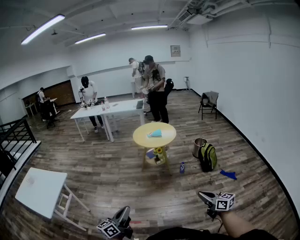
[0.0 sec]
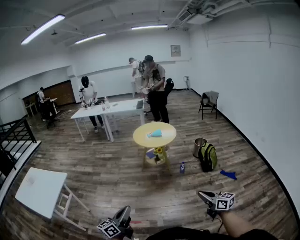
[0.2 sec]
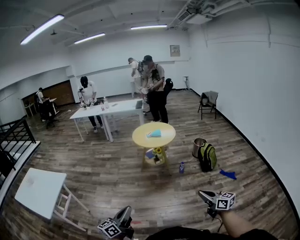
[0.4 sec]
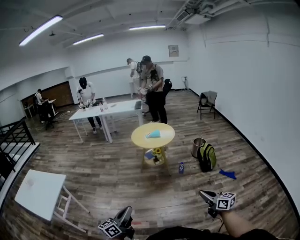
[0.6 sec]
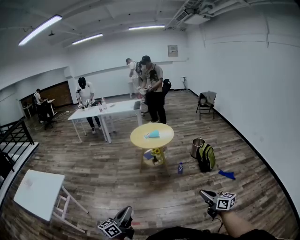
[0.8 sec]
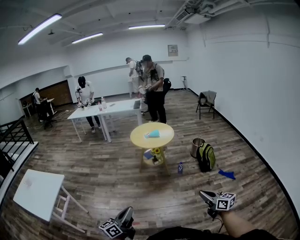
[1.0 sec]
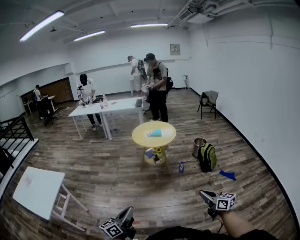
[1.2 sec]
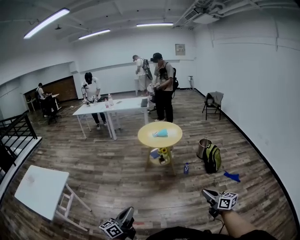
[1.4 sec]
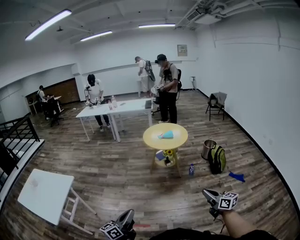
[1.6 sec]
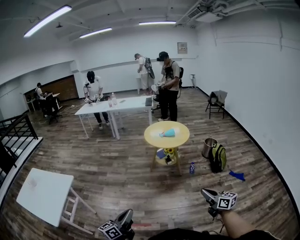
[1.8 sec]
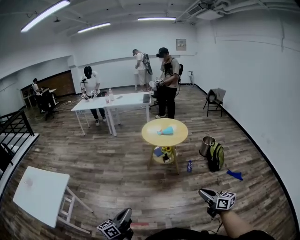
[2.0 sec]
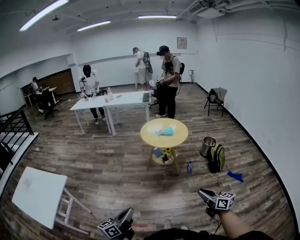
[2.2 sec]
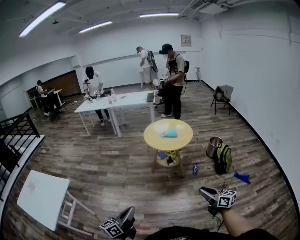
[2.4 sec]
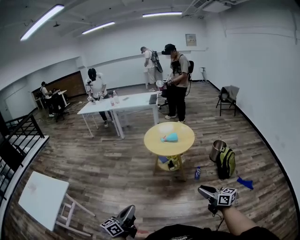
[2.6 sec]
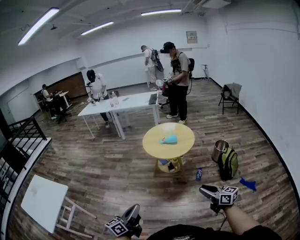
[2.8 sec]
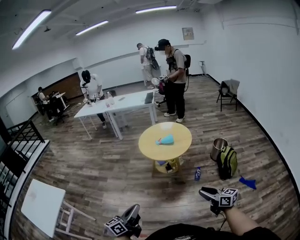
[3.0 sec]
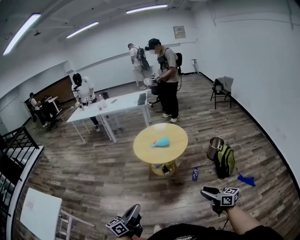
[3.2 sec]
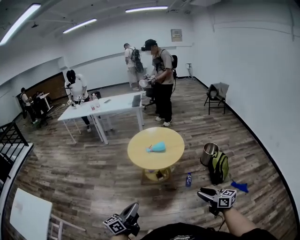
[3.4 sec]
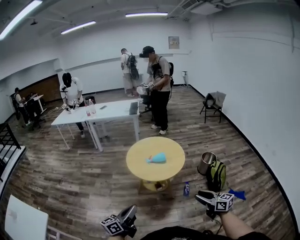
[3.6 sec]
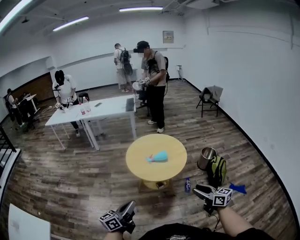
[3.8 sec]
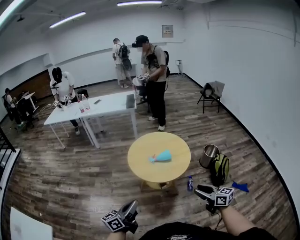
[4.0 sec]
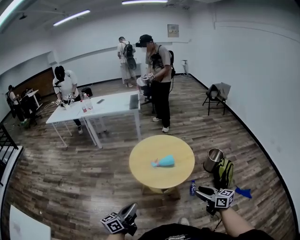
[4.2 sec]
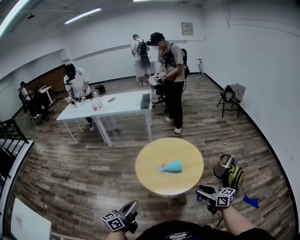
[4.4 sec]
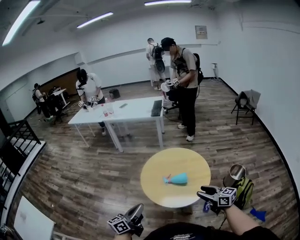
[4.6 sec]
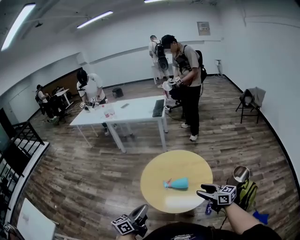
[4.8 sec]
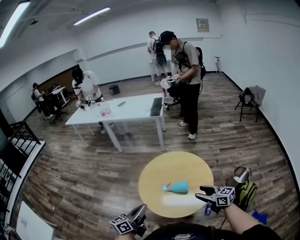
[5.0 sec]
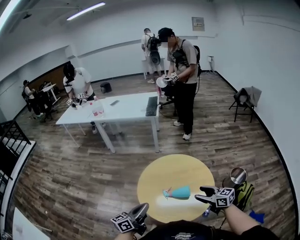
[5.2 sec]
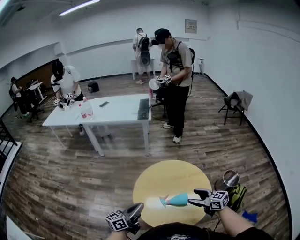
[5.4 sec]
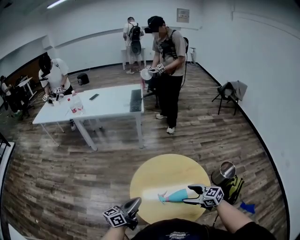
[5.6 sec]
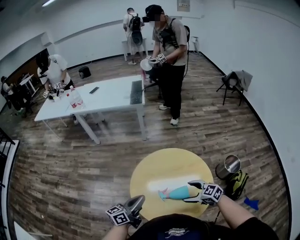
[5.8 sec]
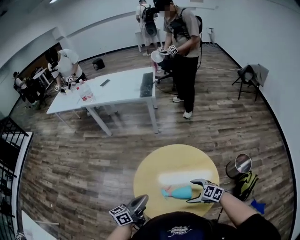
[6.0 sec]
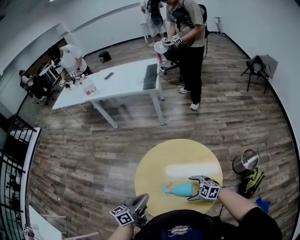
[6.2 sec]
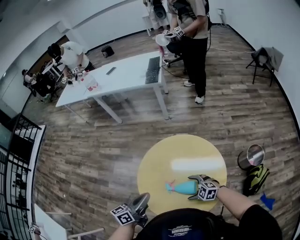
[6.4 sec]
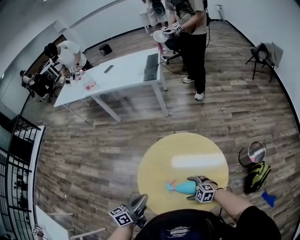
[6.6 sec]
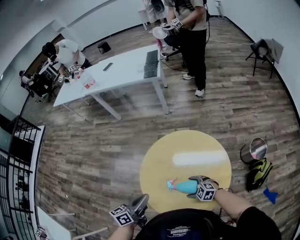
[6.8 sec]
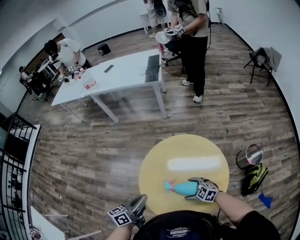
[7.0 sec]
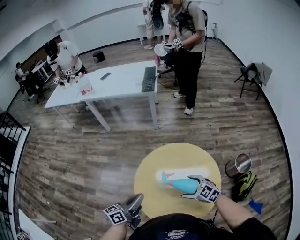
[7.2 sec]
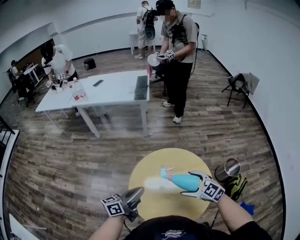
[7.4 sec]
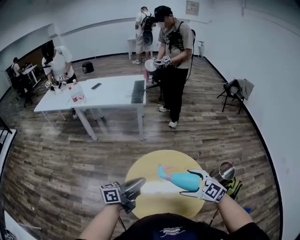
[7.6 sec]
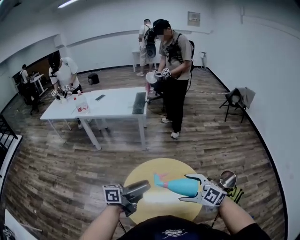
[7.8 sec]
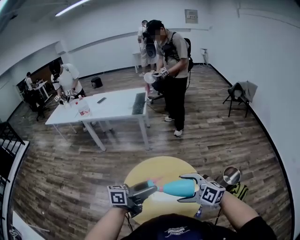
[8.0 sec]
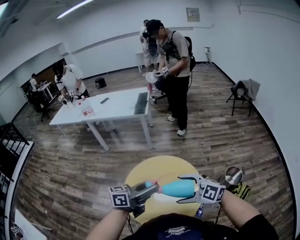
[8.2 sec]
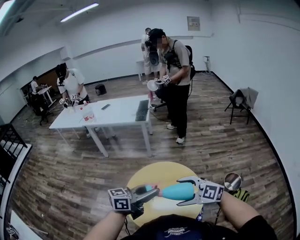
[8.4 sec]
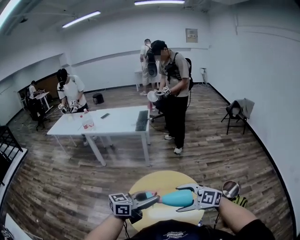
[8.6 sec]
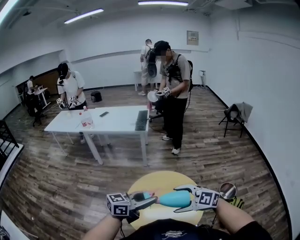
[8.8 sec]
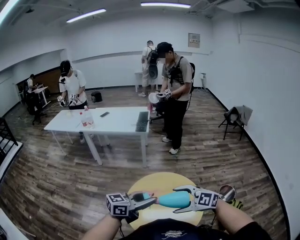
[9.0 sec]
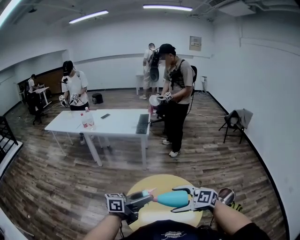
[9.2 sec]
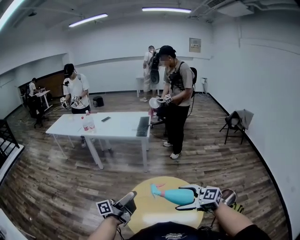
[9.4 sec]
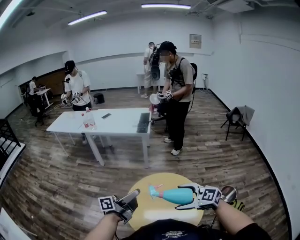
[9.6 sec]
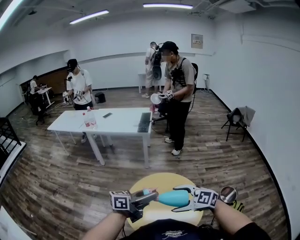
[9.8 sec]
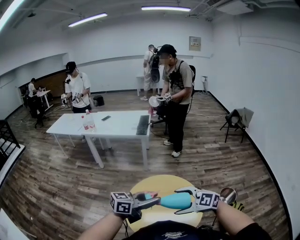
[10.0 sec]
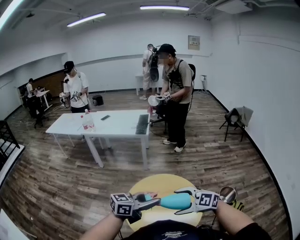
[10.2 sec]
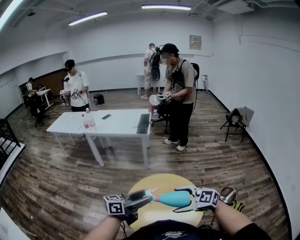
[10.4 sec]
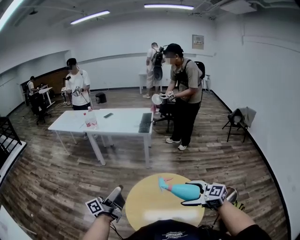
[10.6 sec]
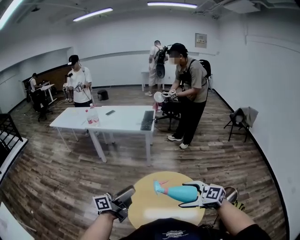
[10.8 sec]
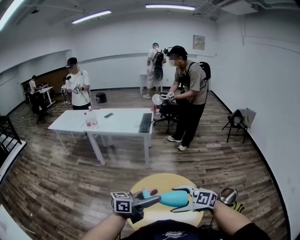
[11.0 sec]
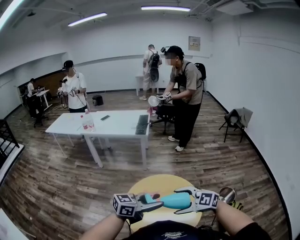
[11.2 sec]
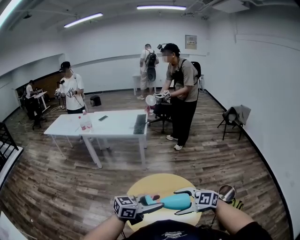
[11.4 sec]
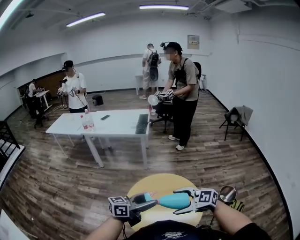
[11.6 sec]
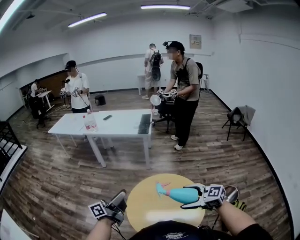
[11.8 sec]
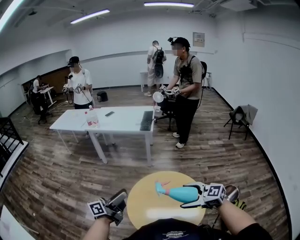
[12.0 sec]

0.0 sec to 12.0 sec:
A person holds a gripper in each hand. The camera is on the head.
0.0 sec to 1.6 sec: The two grippers go roughly 15 cm to the left and forward.
1.6 sec to 3.0 sec: Both grippers are carried forward and to the right, approximately 50 cm.
3.0 sec to 4.4 sec: The two grippers travel together, forward, approximately 60 cm.
4.4 sec to 6.0 sec: Both grippers are carried forward, roughly 50 cm. The right gripper goes approximately 20 cm downward, rotates about 50 degrees, and opens.
6.0 sec to 7.6 sec: The left gripper goes some 10 cm upward, and swivels some 20 degrees. Meanwhile the right gripper is displaced upward by about 20 cm, and swivels approximately 20 degrees.
7.6 sec to 9.0 sec: The left gripper changes place by roughly 20 cm, changes its angle by roughly 30 degrees, and opens up. The right gripper ends up about 15 cm from where it was, and rotates approximately 20 degrees.
10.4 sec to 12.0 sec: The left gripper ends up roughly 10 cm from where it was, and changes its angle by roughly 20 degrees.

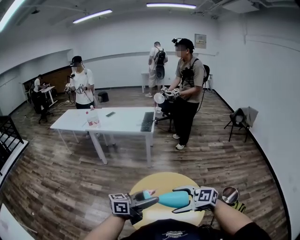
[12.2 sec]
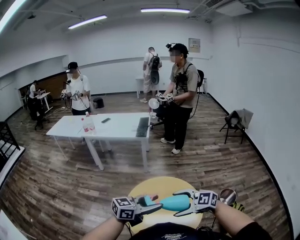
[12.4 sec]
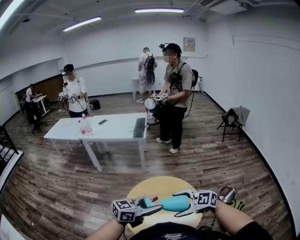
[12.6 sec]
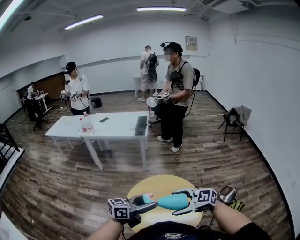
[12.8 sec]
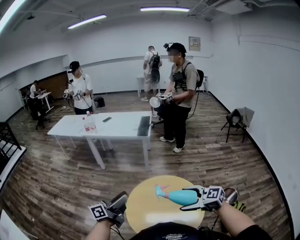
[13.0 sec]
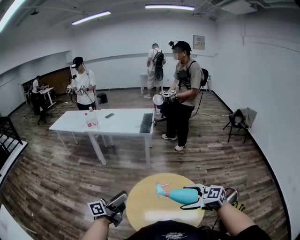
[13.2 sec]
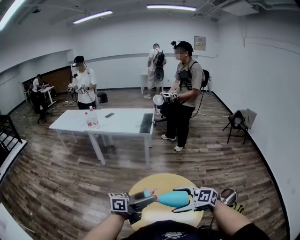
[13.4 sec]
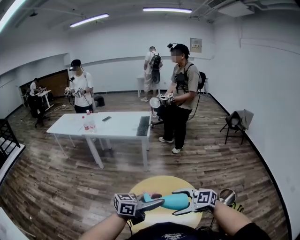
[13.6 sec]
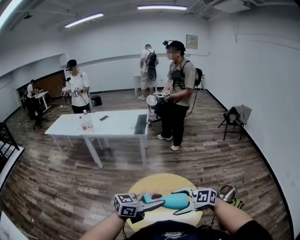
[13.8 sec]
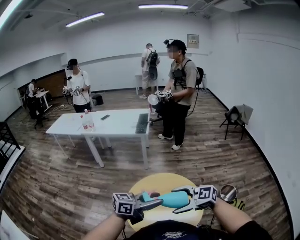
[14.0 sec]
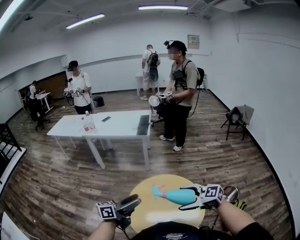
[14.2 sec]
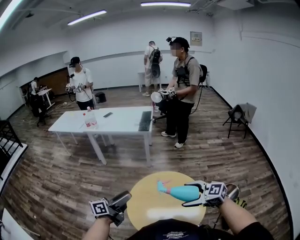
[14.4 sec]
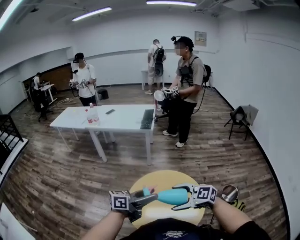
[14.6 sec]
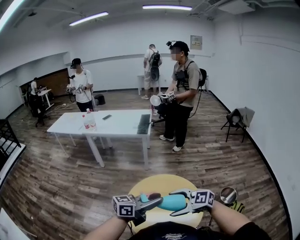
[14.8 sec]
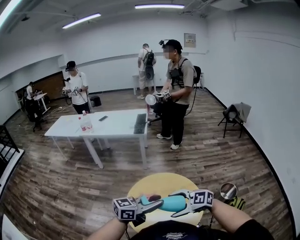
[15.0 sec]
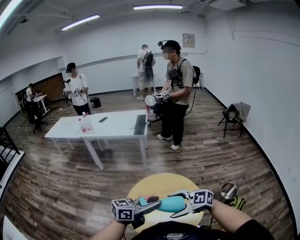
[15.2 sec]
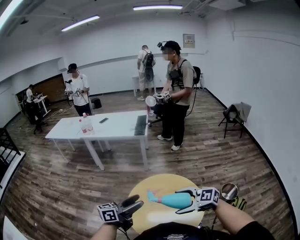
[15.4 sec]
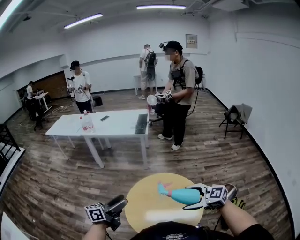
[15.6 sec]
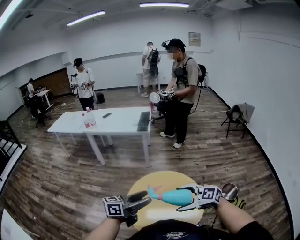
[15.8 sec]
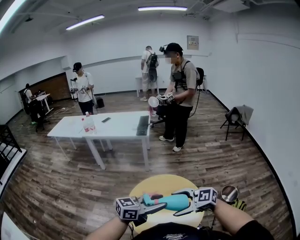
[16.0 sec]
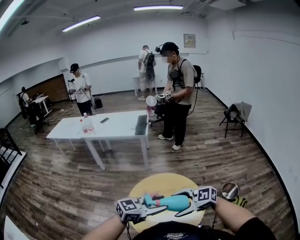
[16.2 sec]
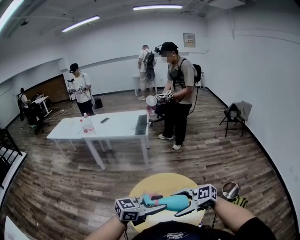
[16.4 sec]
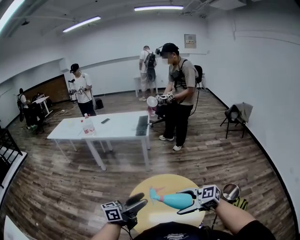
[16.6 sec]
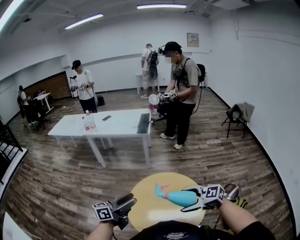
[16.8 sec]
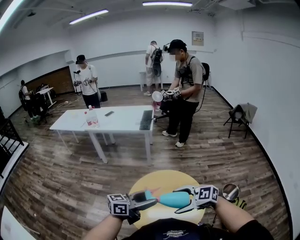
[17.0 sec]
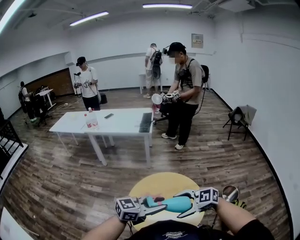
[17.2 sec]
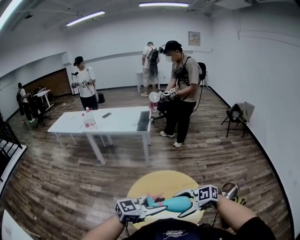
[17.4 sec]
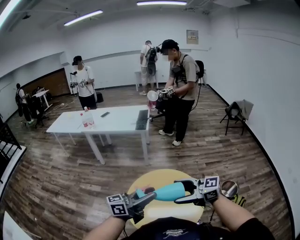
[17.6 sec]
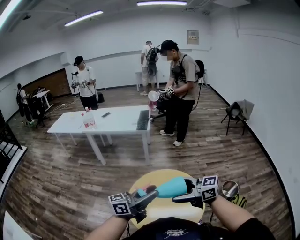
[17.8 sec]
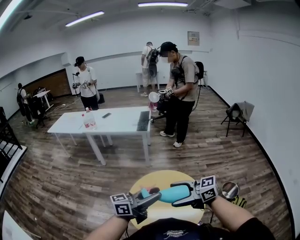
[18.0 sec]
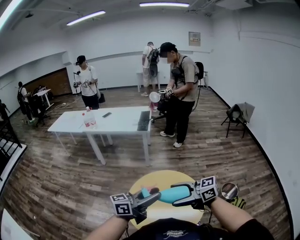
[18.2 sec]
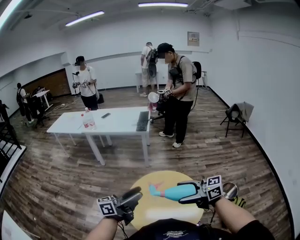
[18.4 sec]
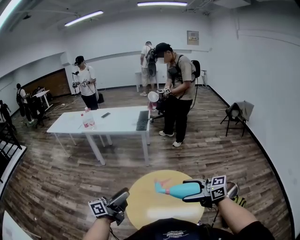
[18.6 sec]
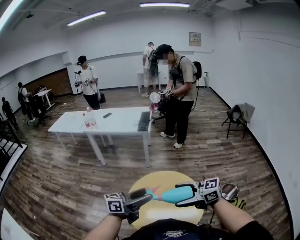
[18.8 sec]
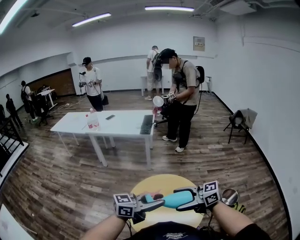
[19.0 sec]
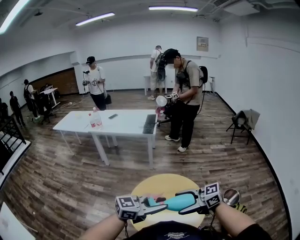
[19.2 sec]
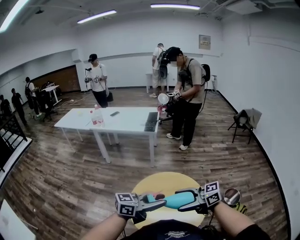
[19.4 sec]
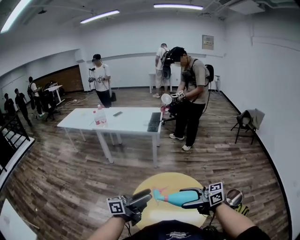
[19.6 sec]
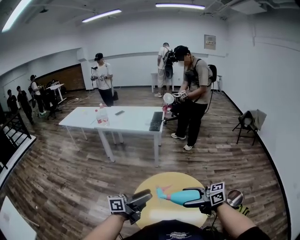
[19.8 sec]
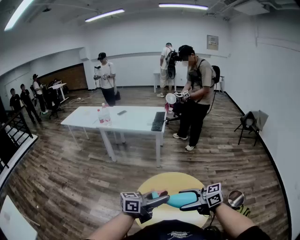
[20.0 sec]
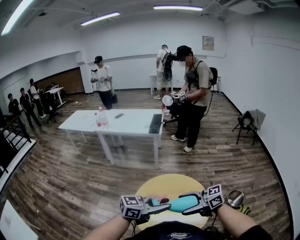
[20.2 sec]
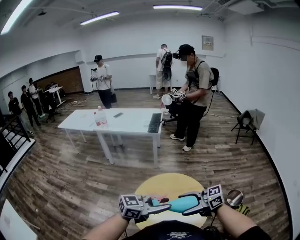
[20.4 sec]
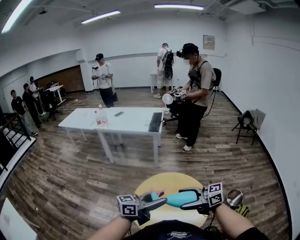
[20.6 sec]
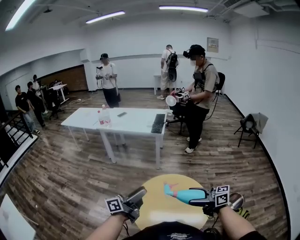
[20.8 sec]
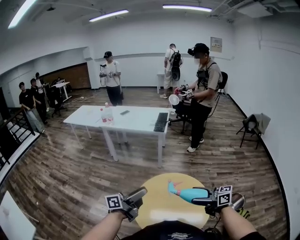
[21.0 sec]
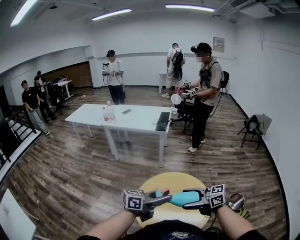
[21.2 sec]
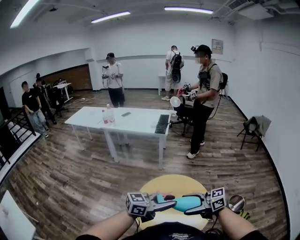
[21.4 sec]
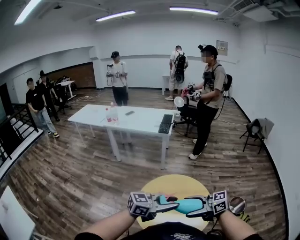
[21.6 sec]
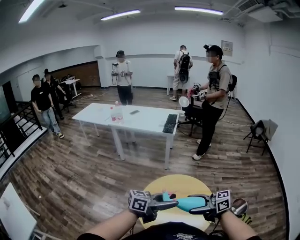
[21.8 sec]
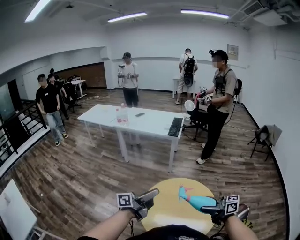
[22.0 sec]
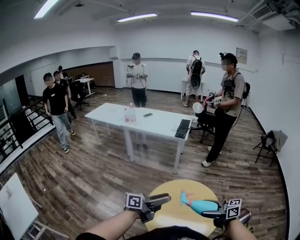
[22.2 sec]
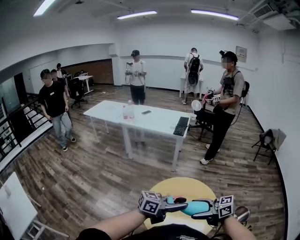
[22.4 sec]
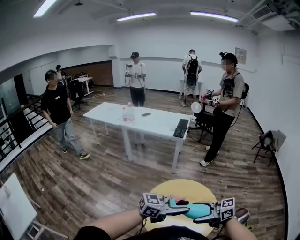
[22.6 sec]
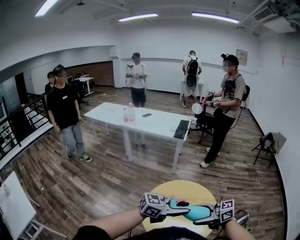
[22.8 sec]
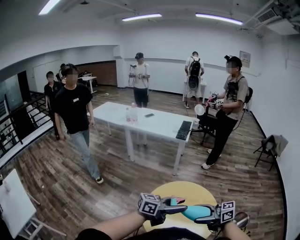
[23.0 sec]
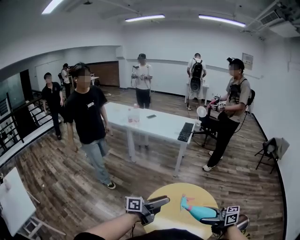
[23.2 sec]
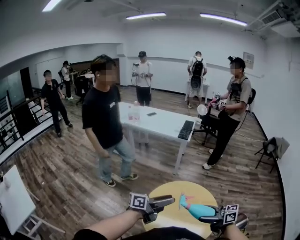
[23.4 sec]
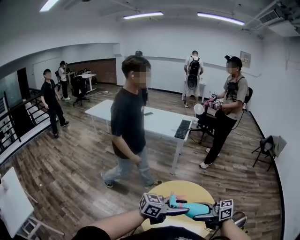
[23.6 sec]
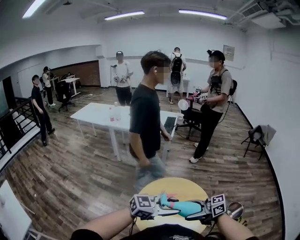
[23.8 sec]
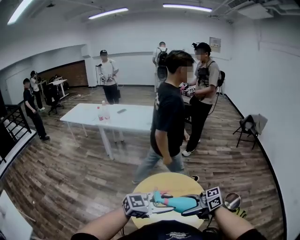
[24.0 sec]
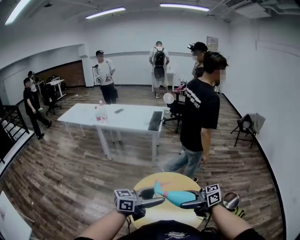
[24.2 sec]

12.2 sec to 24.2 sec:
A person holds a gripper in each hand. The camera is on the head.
12.2 sec to 13.8 sec: The left gripper changes its angle by roughly 20 degrees, and closes its fingers.
13.8 sec to 15.2 sec: The left gripper opens and closes again.
15.2 sec to 16.6 sec: The left gripper opens up.
16.6 sec to 18.2 sec: The left gripper closes; the right gripper moves upward, about 5 cm, and rotates some 20 degrees.
18.2 sec to 19.8 sec: The left gripper opens its fingers.
21.2 sec to 22.6 sec: The left gripper rotates approximately 30 degrees.
22.6 sec to 24.2 sec: The left gripper opens.
